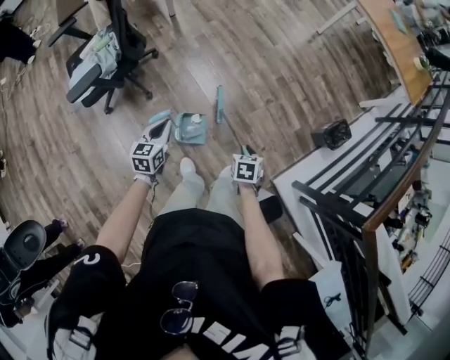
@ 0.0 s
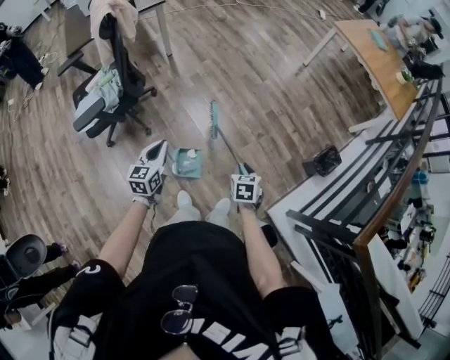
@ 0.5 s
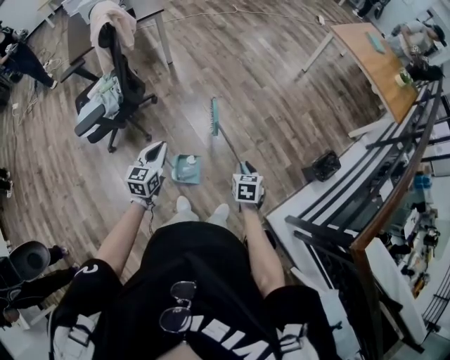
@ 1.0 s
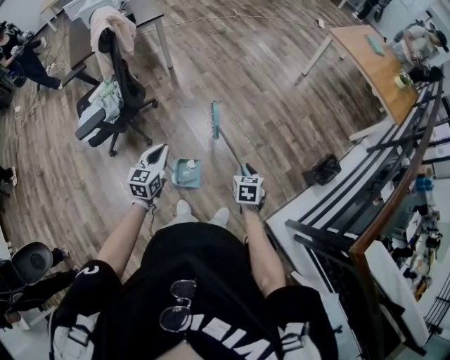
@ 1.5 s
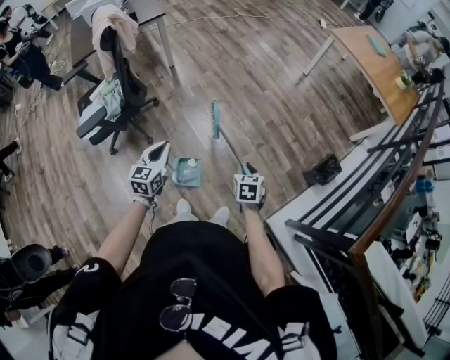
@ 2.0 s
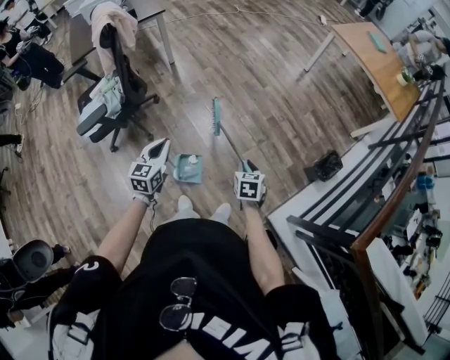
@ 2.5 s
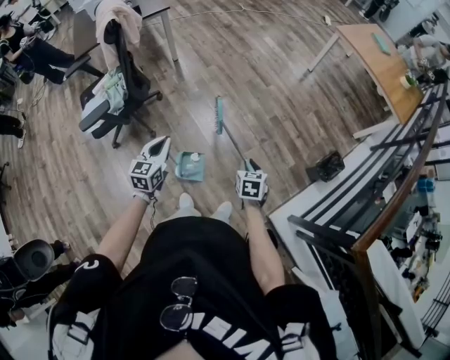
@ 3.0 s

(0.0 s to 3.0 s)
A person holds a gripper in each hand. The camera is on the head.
0.0 s - 1.5 s: The right gripper shifts roughly 15 cm upward, forward and to the right, while the left gripper goes roughly 15 cm upward and to the right.
1.5 s - 3.0 s: Both grippers stay put.

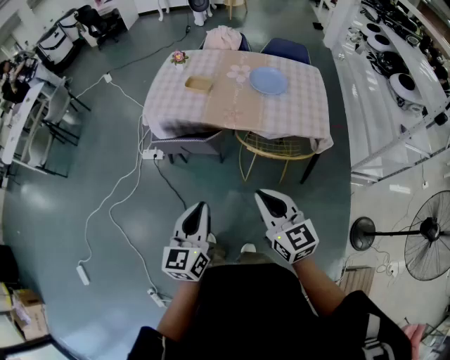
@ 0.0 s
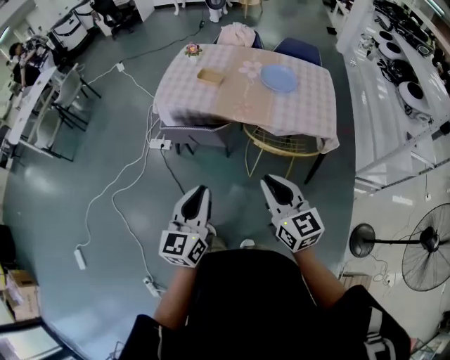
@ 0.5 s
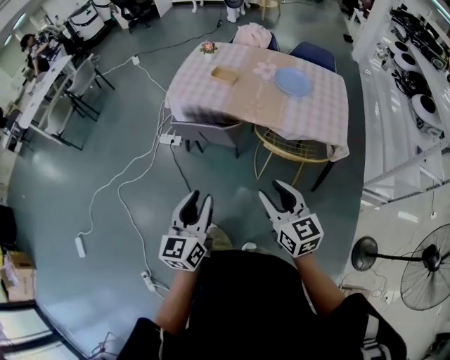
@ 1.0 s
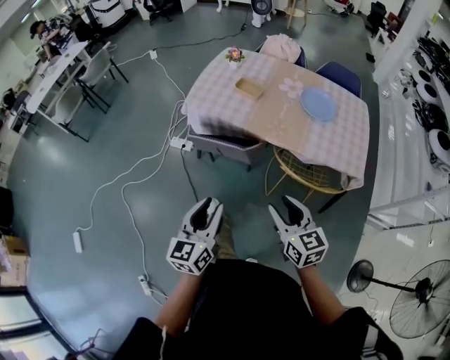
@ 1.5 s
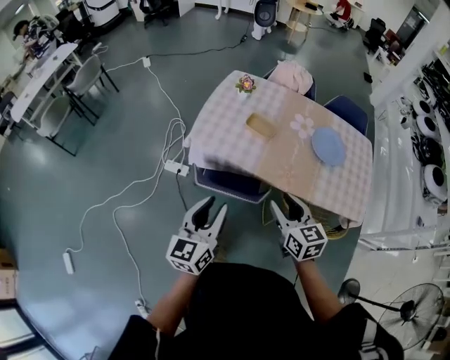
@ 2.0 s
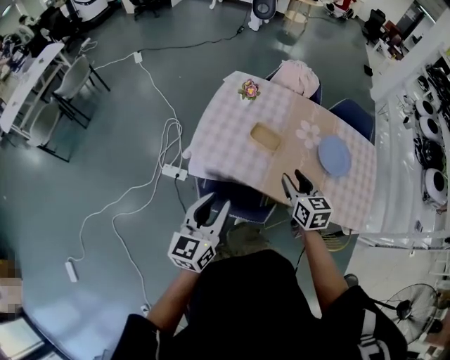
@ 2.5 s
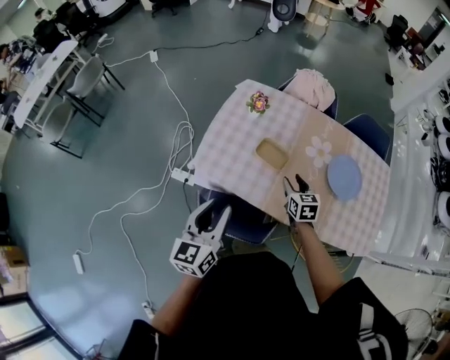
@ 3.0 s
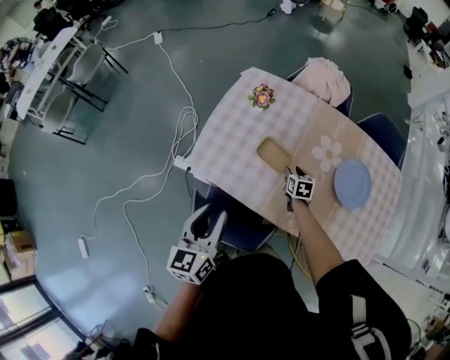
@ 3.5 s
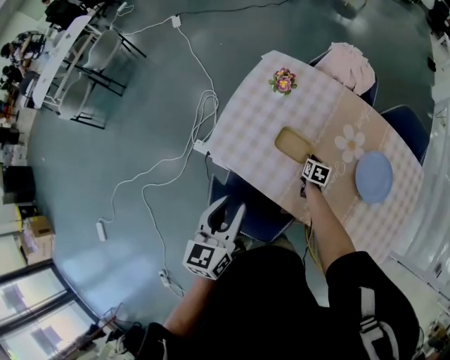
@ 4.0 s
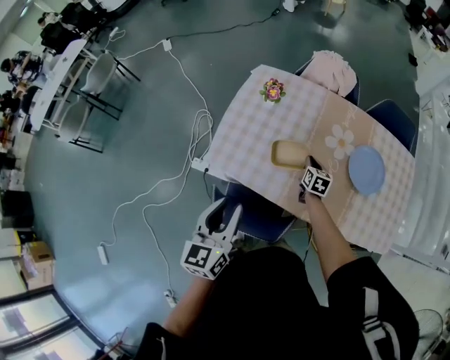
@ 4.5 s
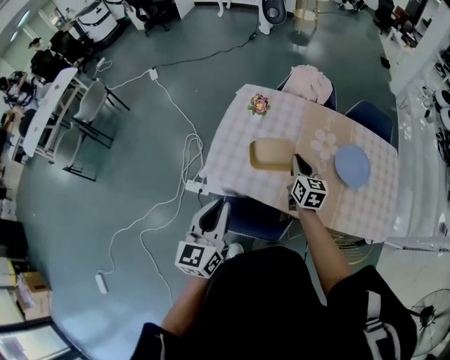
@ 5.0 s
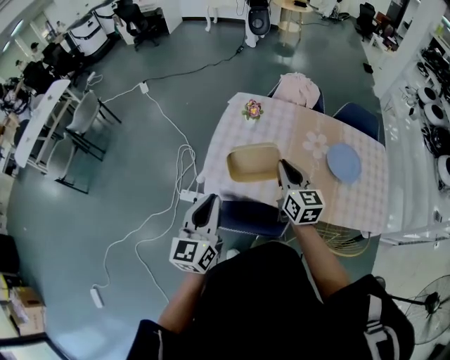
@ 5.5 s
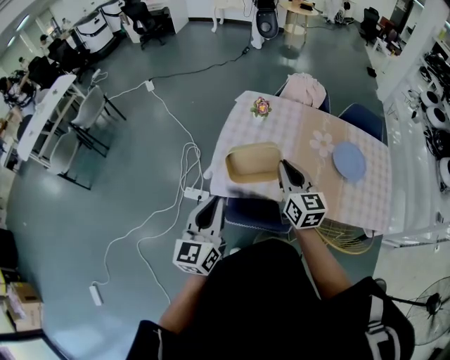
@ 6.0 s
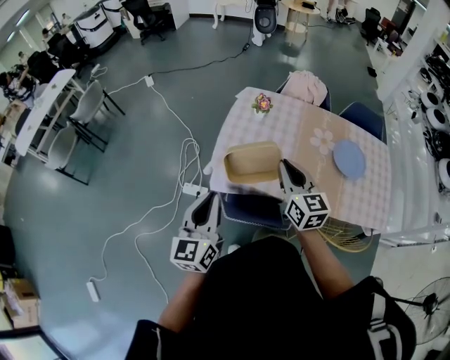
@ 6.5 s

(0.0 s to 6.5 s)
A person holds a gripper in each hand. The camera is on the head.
0.0 s - 2.0 s: The left gripper moves forward and to the left, some 30 cm, and opens. Meanwhile the right gripper goes roughly 30 cm forward, and opens its fingers.
2.0 s - 4.5 s: The right gripper goes about 50 cm forward and downward, turns by roughly 30 degrees, and closes up. The left gripper shifts some 20 cm forward.
4.5 s - 6.5 s: The left gripper goes roughly 15 cm to the left and backward, and closes. Meanwhile the right gripper goes about 40 cm upward, to the left and backward, and tips its fingers upward by approximately 30 degrees.

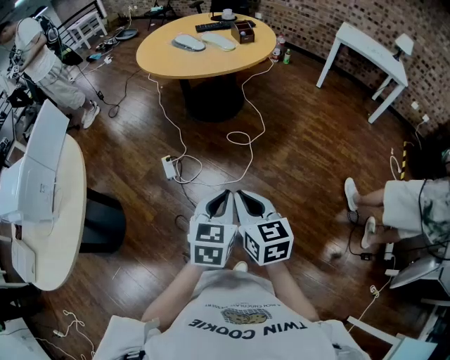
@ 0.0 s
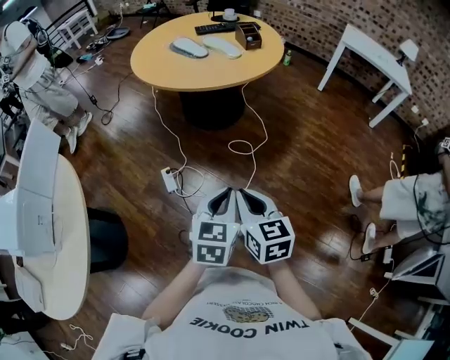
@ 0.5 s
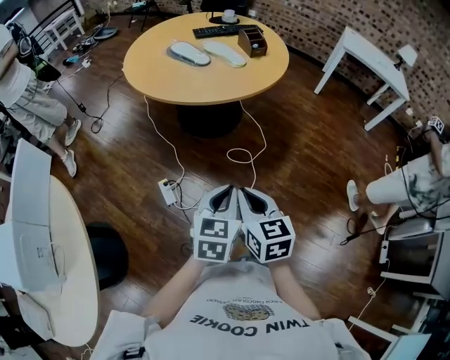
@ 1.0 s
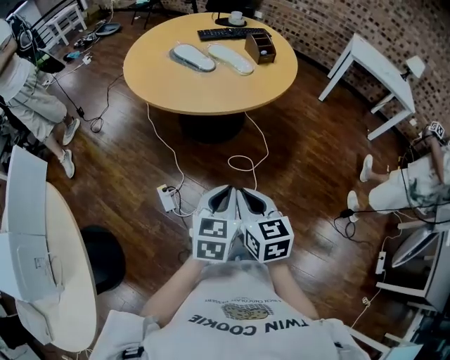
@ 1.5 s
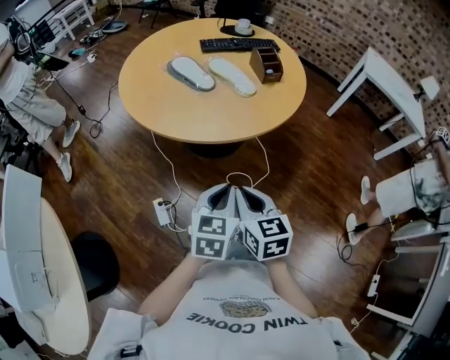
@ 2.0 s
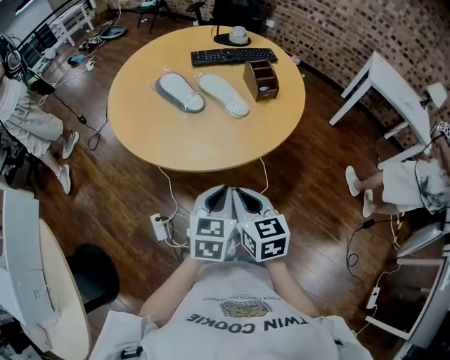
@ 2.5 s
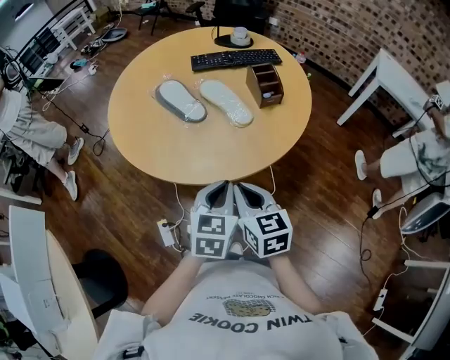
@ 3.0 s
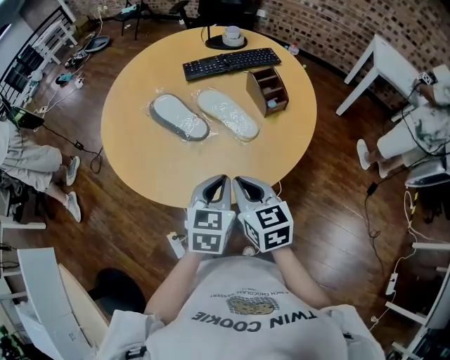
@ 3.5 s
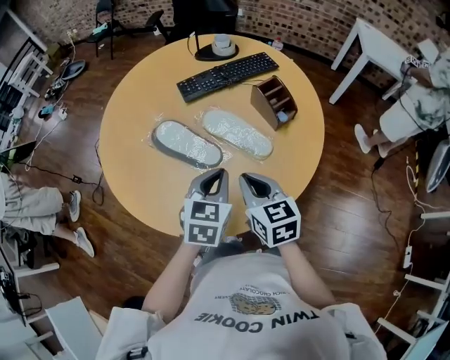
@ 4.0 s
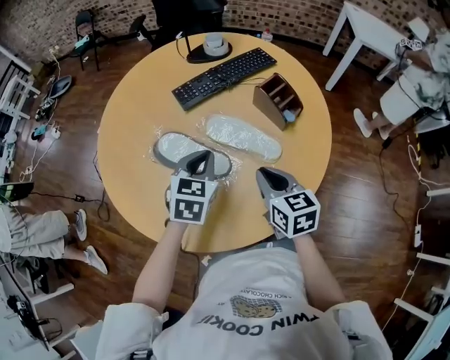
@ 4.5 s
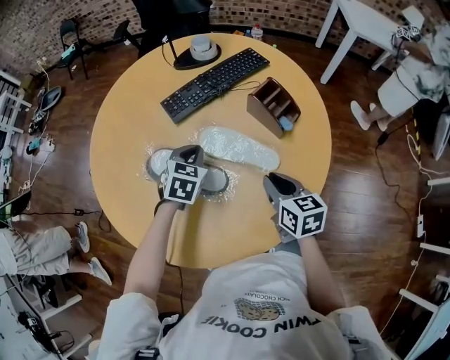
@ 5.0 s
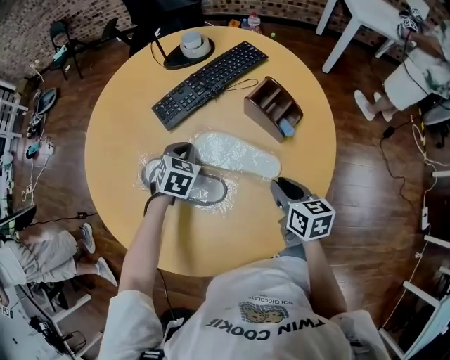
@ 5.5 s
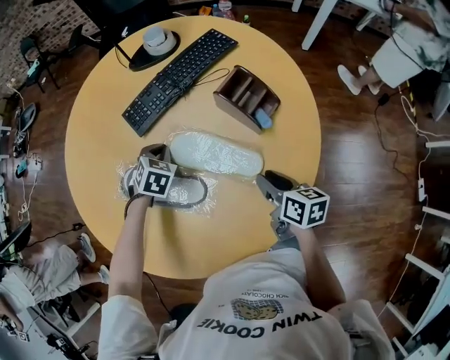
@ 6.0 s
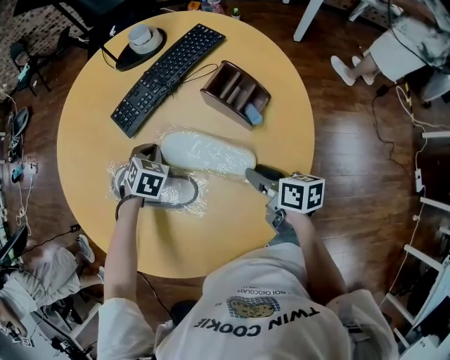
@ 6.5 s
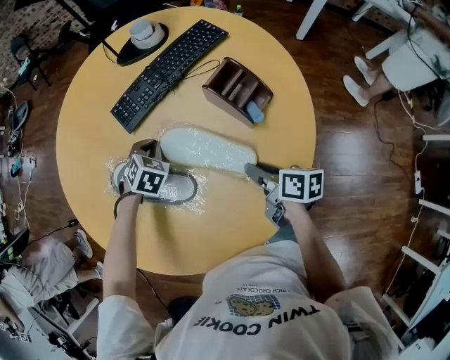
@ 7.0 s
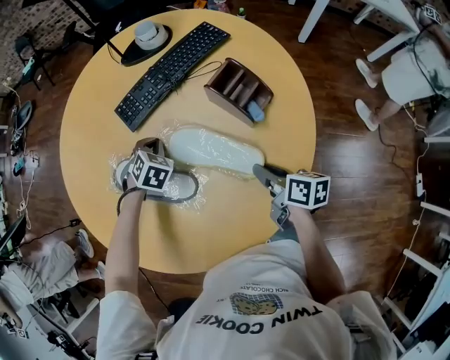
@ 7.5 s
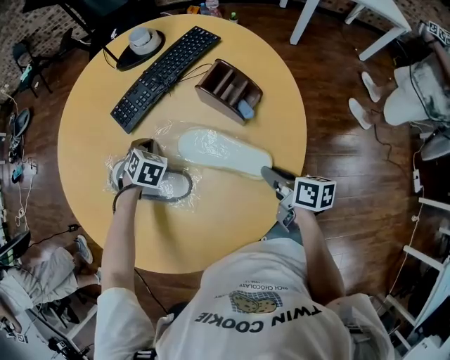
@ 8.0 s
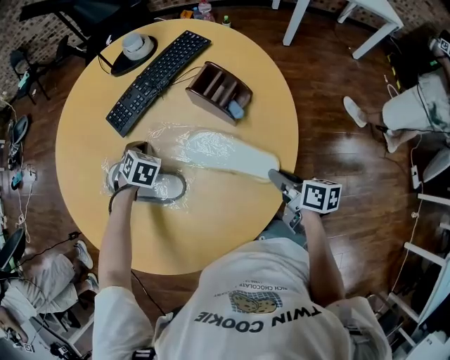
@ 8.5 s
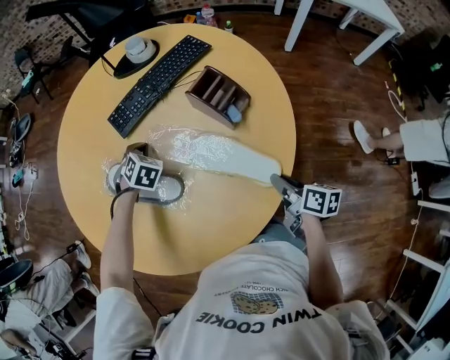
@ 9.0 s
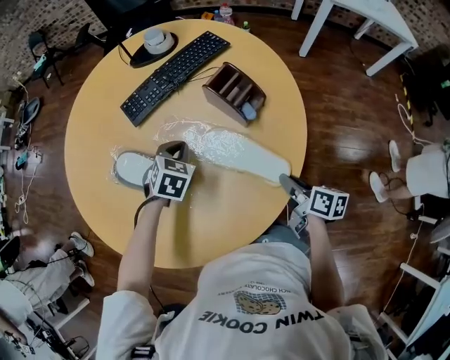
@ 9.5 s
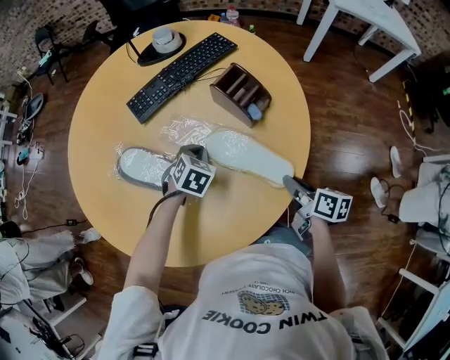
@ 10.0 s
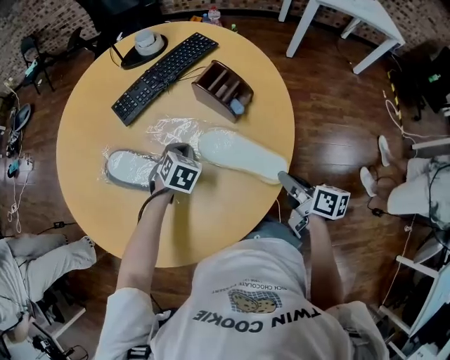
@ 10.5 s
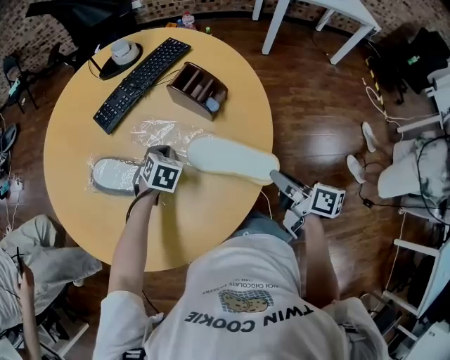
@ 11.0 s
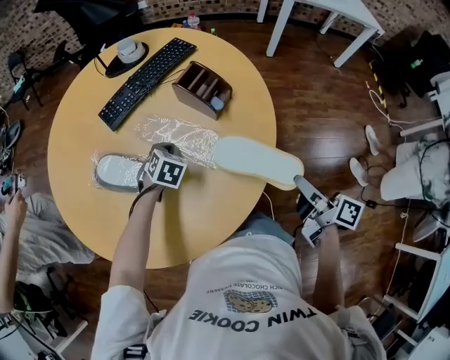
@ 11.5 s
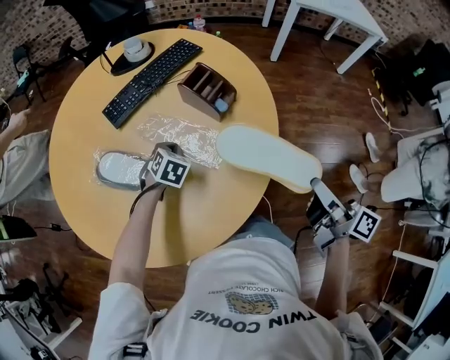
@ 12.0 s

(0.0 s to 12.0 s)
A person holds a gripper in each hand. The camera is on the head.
0.0 s - 2.0 s: Both grippers are carried forward, approximately 50 cm.
2.0 s - 4.0 s: Both grippers move forward, approximately 40 cm.
4.0 s - 6.0 s: The left gripper goes some 30 cm forward and downward, and rotates about 40 degrees. The right gripper is displaced downward, to the right and forward by approximately 20 cm, rotates approximately 40 degrees, and opens up.
6.0 s - 8.0 s: The right gripper changes place by roughly 5 cm.
8.0 s - 10.0 s: The right gripper shifts by some 5 cm, while the left gripper shifts some 15 cm backward and to the right.
10.0 s - 12.0 s: The right gripper shifts approximately 20 cm upward, backward and to the right, and turns by about 30 degrees.

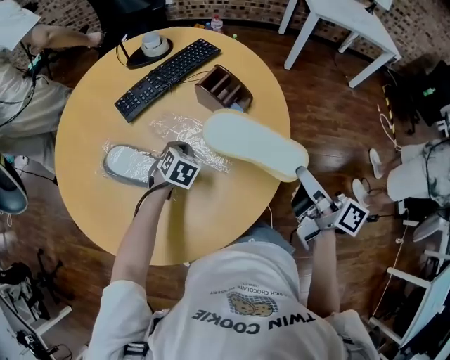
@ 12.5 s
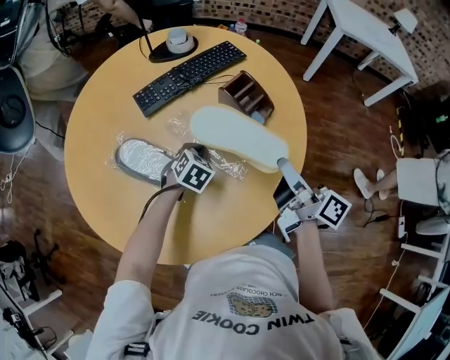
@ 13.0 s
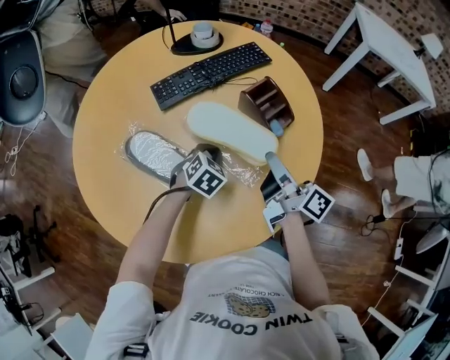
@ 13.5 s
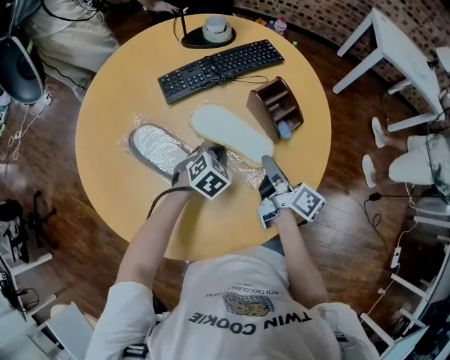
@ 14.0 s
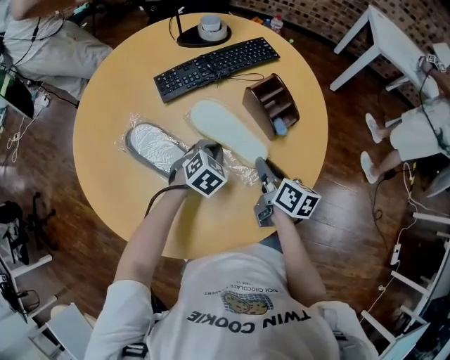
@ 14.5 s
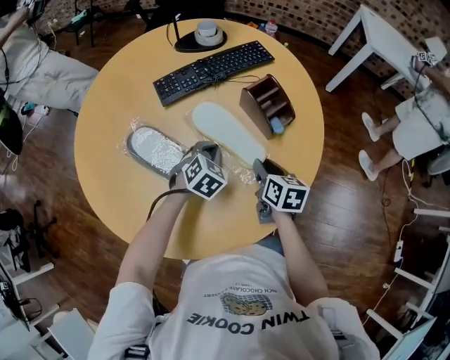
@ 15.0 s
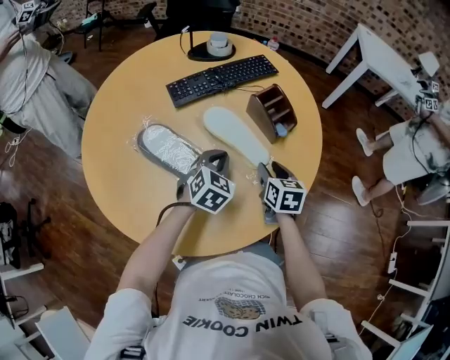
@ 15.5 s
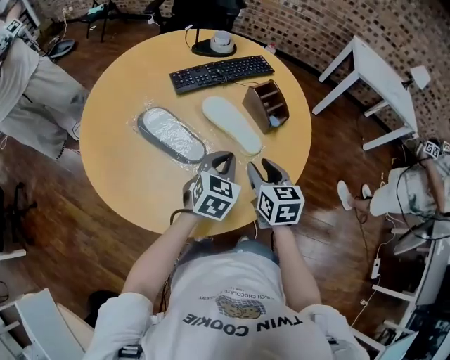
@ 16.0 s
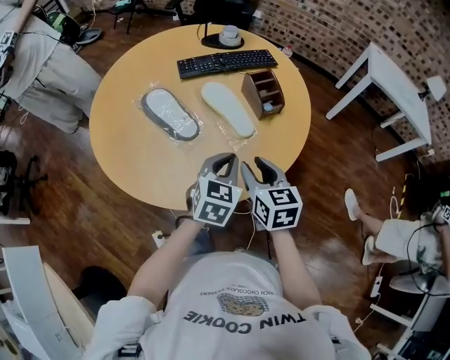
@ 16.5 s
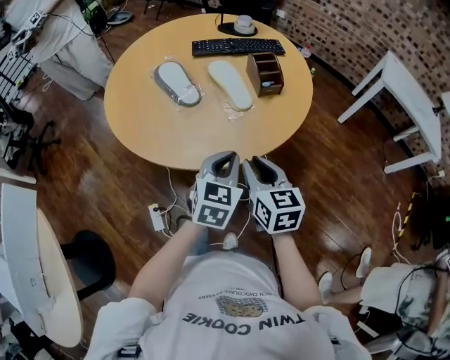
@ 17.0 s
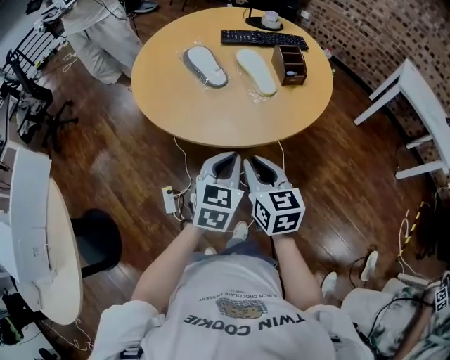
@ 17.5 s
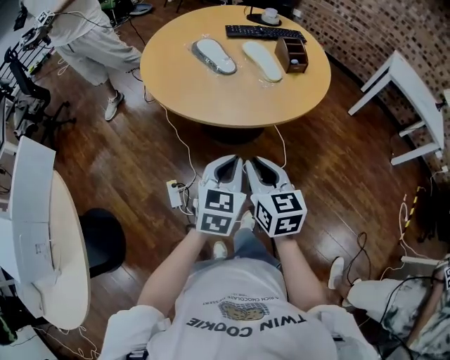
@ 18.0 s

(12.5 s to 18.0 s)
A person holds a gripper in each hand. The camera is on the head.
12.5 s - 14.5 s: The right gripper moves downward, to the left and forward, approximately 25 cm, and rotates about 30 degrees.
14.5 s - 16.0 s: The left gripper travels upward and backward by about 20 cm, and swivels approximately 30 degrees, while the right gripper heads backward and upward, covering some 10 cm, swivels about 40 degrees, and opens.
16.0 s - 18.0 s: The right gripper moves about 40 cm, turns by roughly 30 degrees, and closes up. Meanwhile the left gripper shifts by approximately 40 cm, and rotates approximately 30 degrees.
